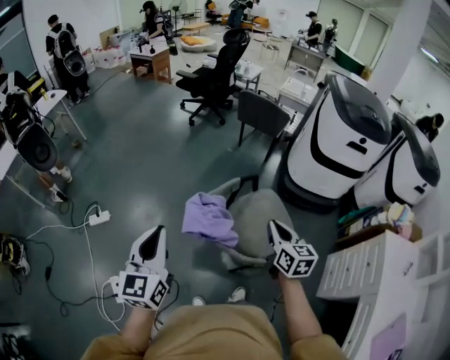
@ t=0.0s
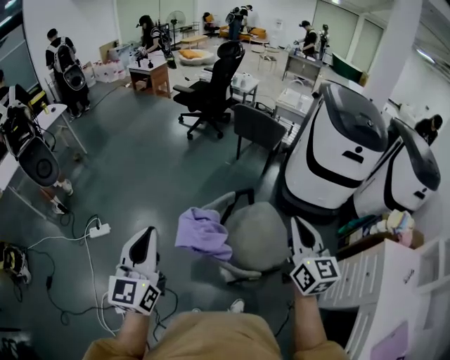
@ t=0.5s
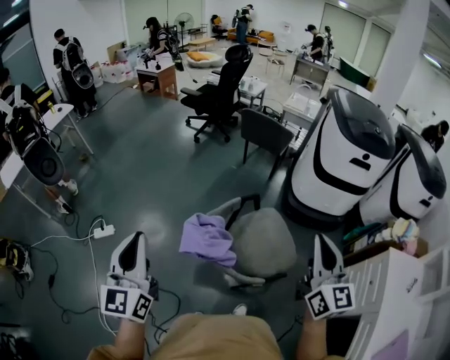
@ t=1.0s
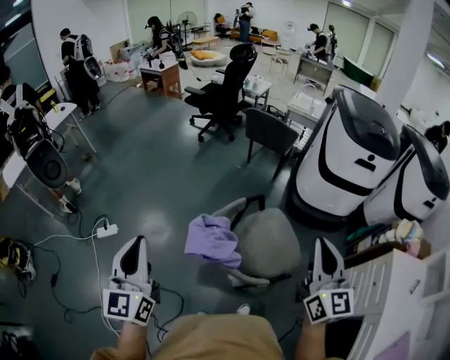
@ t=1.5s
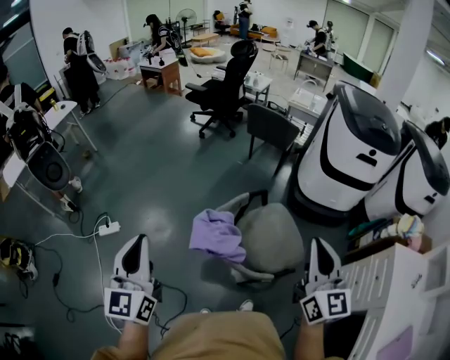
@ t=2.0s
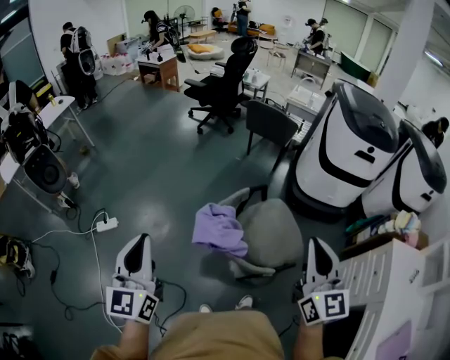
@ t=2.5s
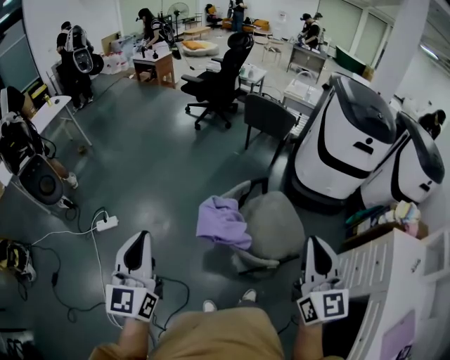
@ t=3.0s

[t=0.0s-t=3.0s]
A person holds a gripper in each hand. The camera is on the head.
t=0.0s to t=1.5s: The right gripper shifts about 20 cm upward, and turns by approximately 30 degrees. The left gripper is displaced upward by some 10 cm.
t=1.5s to t=3.0s: The left gripper heads to the left, covering about 5 cm; the right gripper shifts roughly 15 cm to the left and backward.

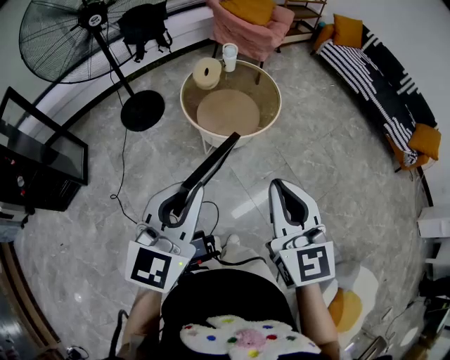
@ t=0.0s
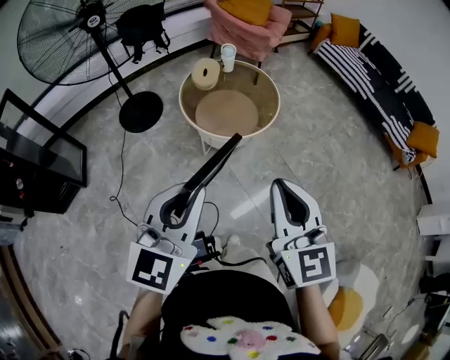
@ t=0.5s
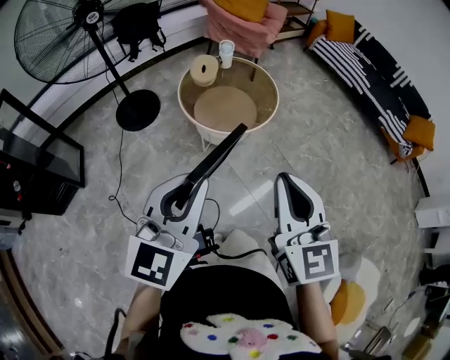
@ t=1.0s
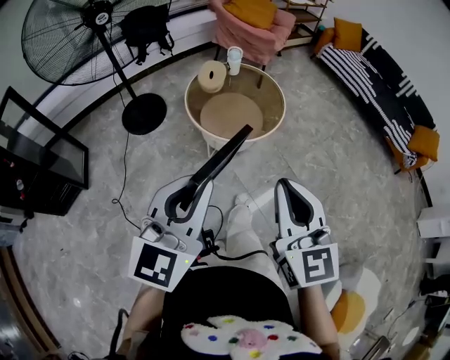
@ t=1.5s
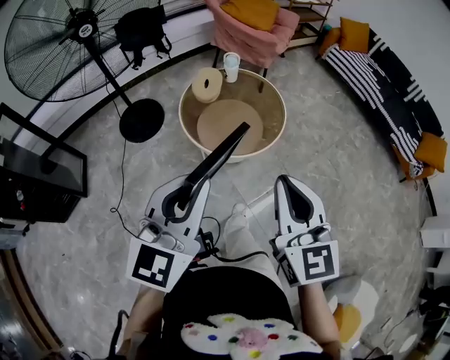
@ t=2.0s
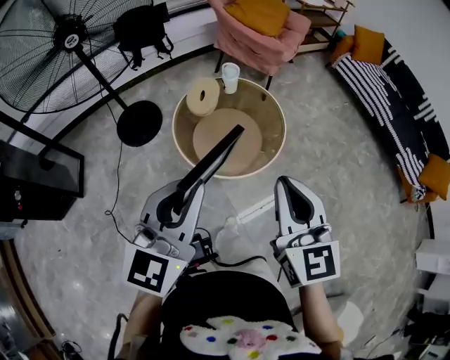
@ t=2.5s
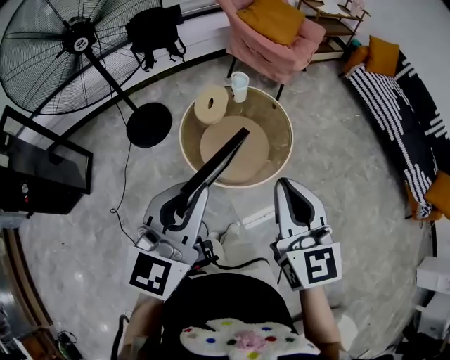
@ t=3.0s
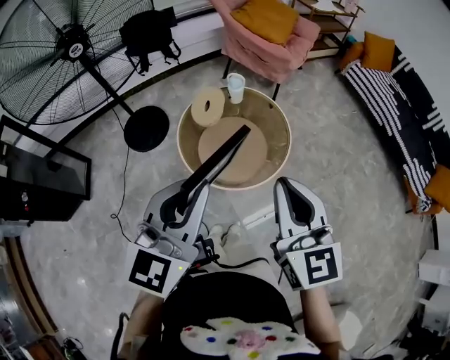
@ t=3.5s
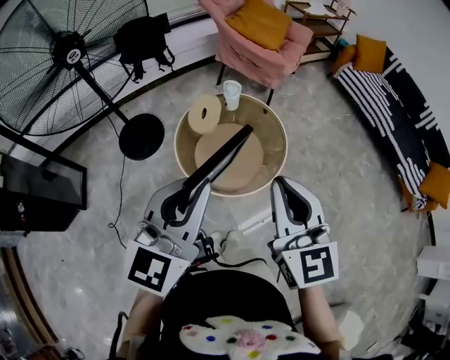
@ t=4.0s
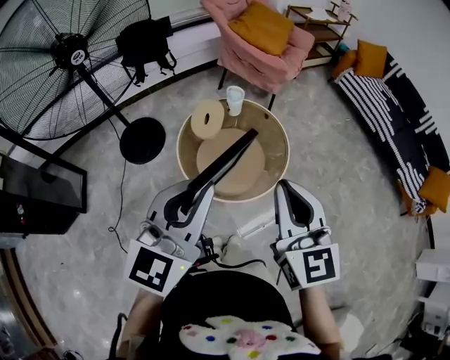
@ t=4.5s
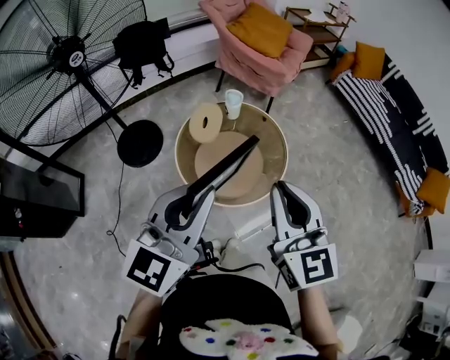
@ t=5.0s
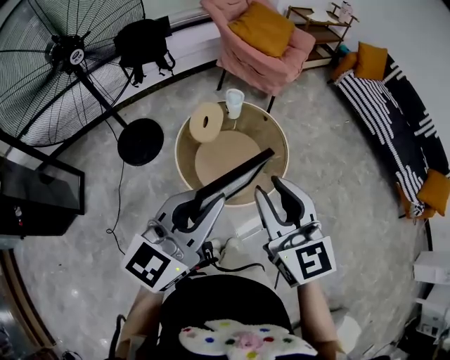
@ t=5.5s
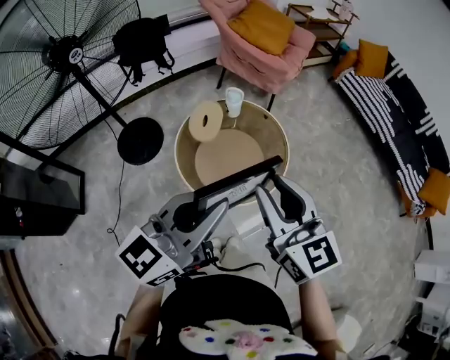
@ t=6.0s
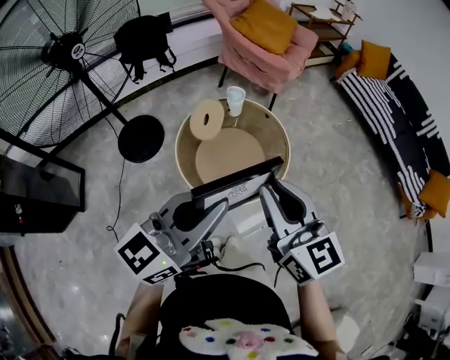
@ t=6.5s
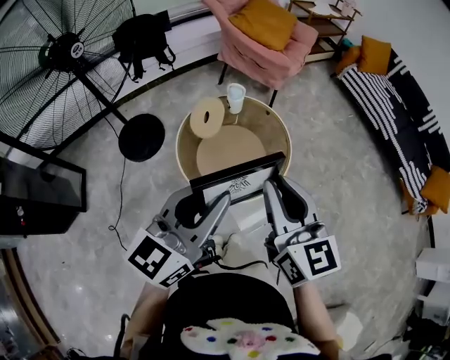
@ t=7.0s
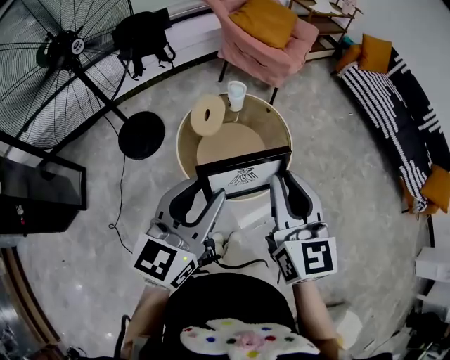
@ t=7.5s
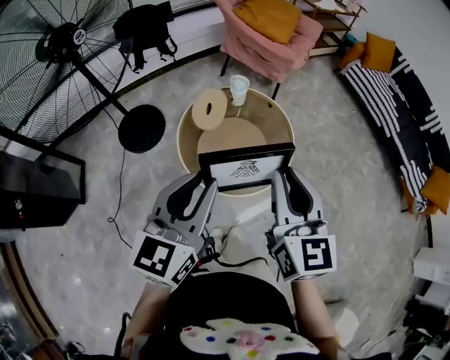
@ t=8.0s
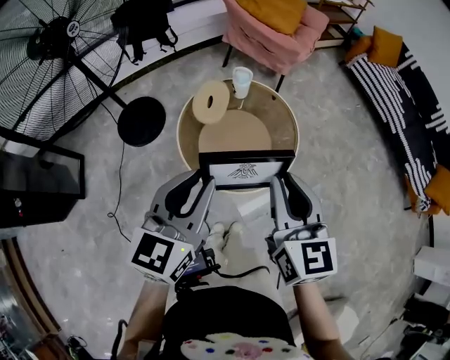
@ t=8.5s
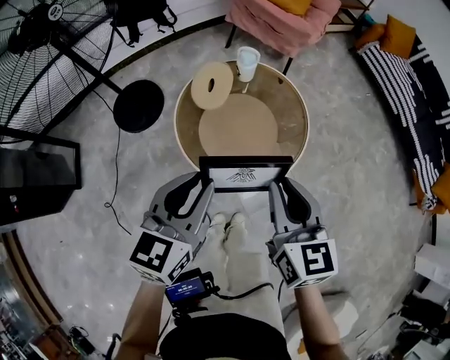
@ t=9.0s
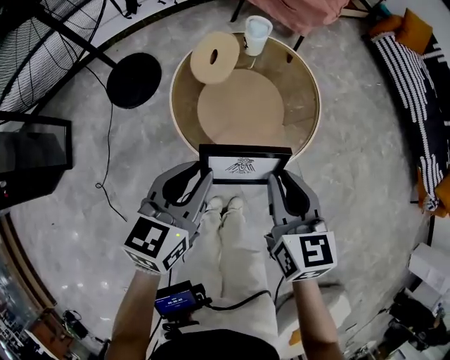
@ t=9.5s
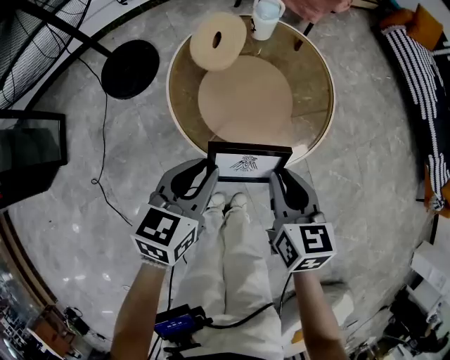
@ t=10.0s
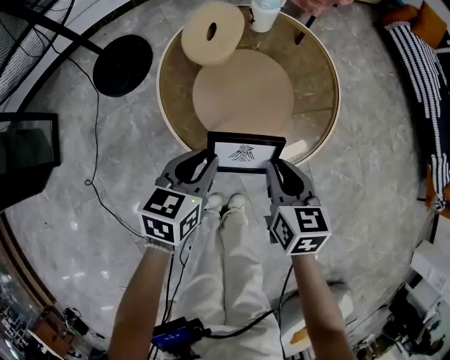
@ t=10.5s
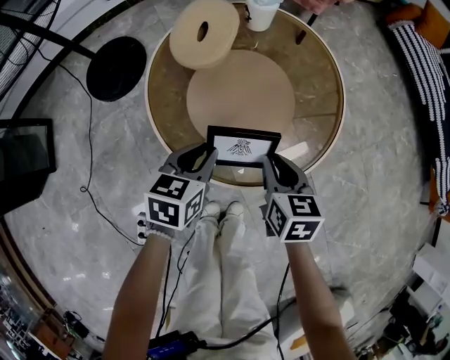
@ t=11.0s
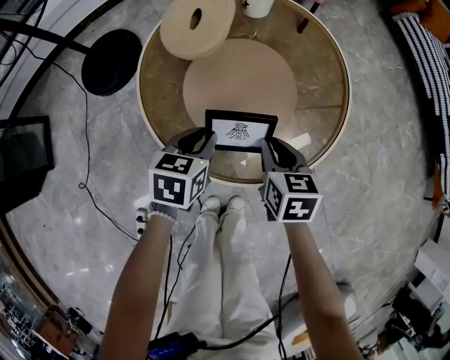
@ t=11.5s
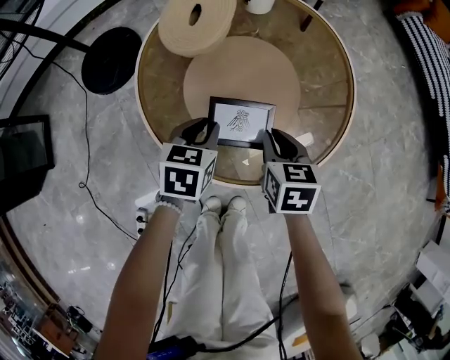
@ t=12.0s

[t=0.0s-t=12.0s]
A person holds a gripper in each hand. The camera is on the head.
t=0.0s to t=2.0s: The two grippers go approximately 10 cm forward.
t=2.0s to t=4.0s: The grippers both shift forward by some 20 cm.
t=4.0s to t=6.0s: The right gripper moves roughly 5 cm, and opens its fingers, while the left gripper rotates about 20 degrees.
t=6.0s to t=8.0s: The left gripper changes place by about 5 cm, and changes its angle by about 30 degrees.
t=8.0s to t=10.0s: The grippers both shift downward by about 30 cm. The right gripper turns by some 30 degrees, while the left gripper rotates roughly 30 degrees.
t=10.0s to t=12.0s: Both grippers travel together downward and forward, about 25 cm.

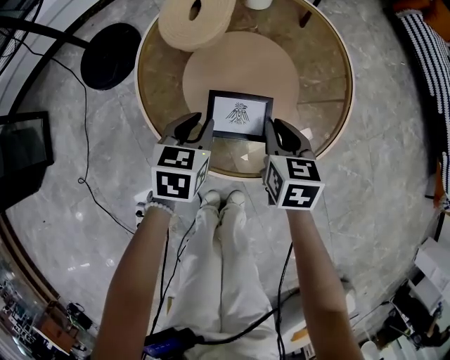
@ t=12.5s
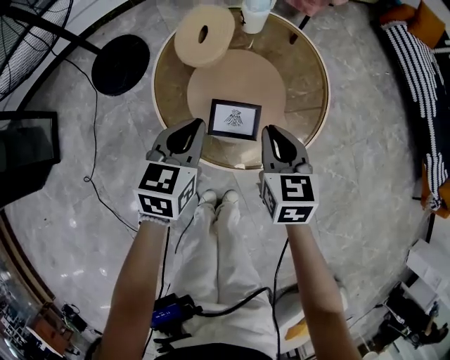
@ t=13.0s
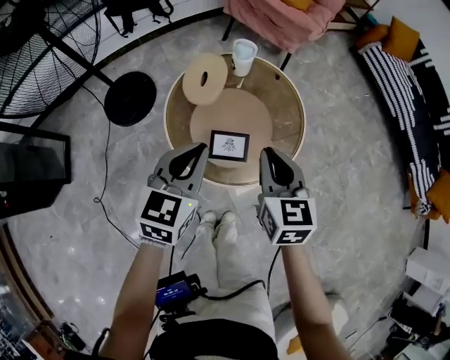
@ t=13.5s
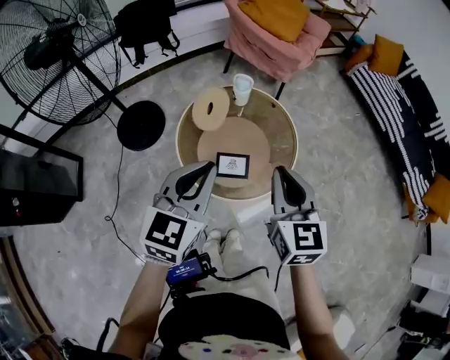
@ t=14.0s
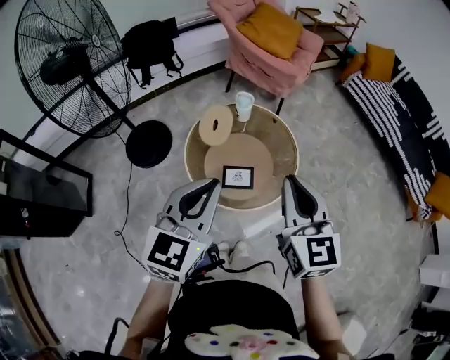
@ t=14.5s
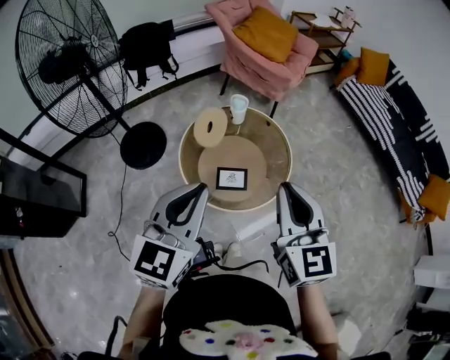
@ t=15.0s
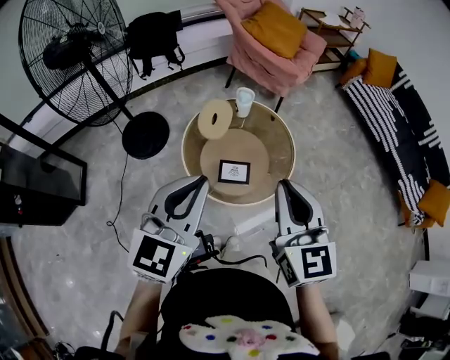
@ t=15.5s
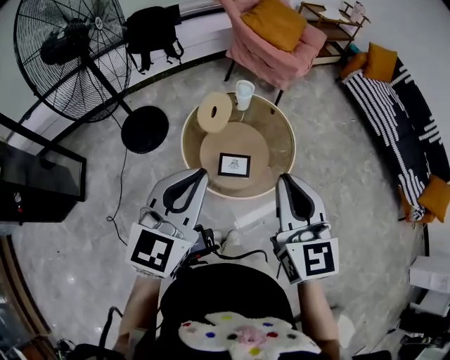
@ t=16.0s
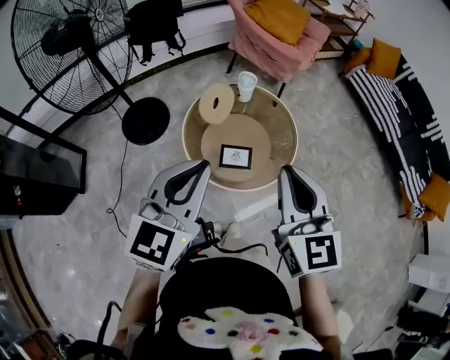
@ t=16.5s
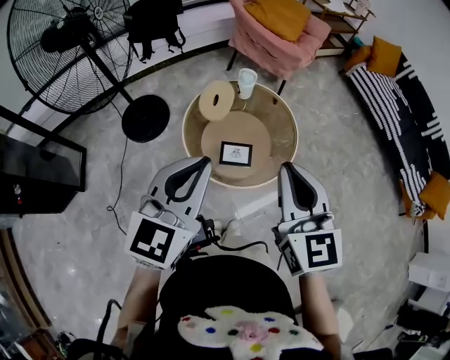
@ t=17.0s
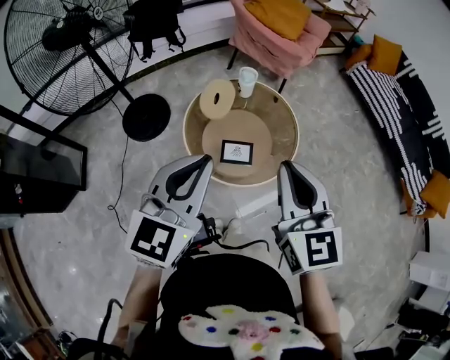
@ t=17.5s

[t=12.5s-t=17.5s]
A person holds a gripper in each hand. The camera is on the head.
t=12.5s to t=15.0s: Both grippers move upward, about 50 cm. The right gripper tips its fingers upward by some 40 degrees; the left gripper angles its fingers upward, by roughly 40 degrees.
t=15.0s to t=17.5s: The grippers stay close to where they were, moving slightly.

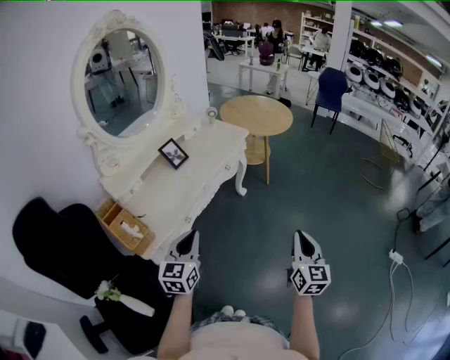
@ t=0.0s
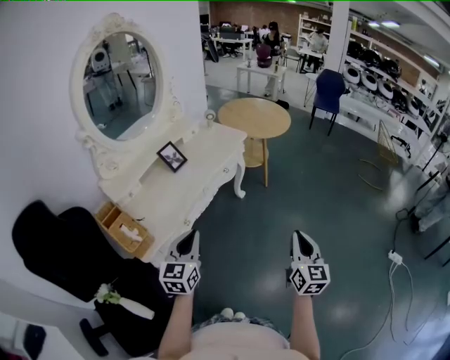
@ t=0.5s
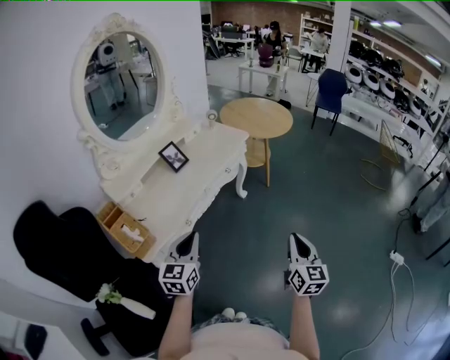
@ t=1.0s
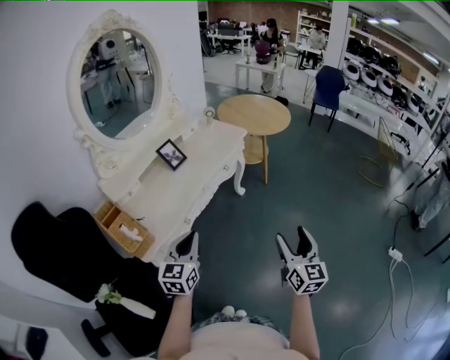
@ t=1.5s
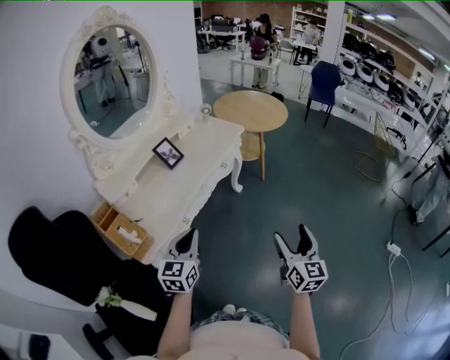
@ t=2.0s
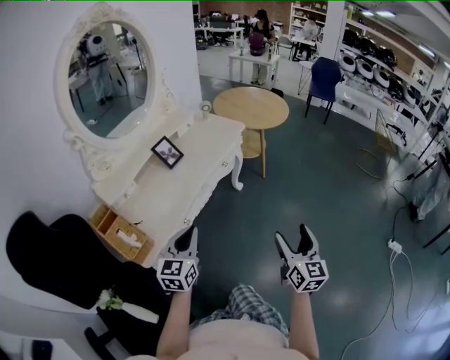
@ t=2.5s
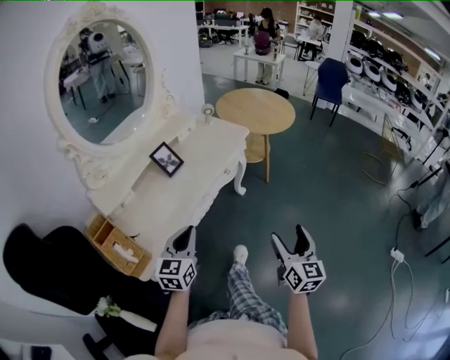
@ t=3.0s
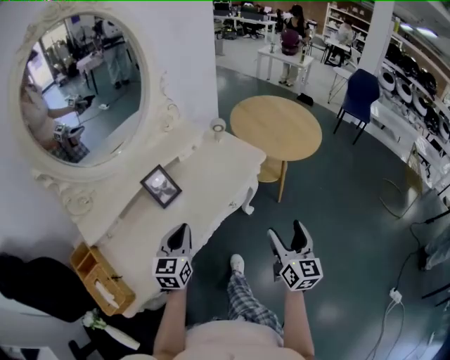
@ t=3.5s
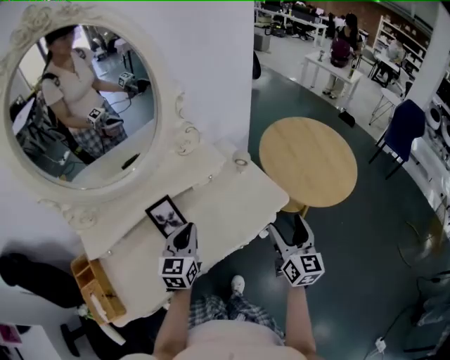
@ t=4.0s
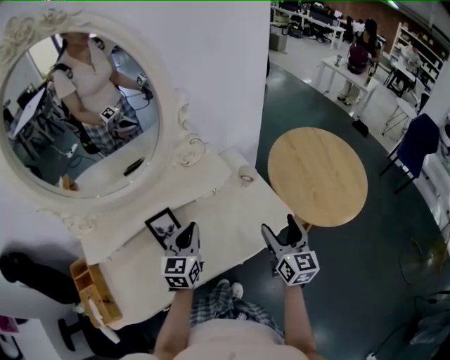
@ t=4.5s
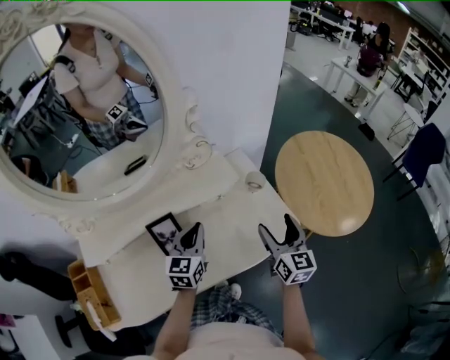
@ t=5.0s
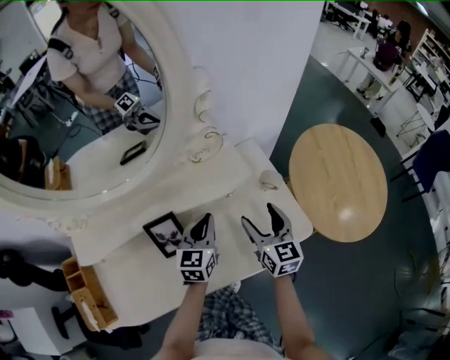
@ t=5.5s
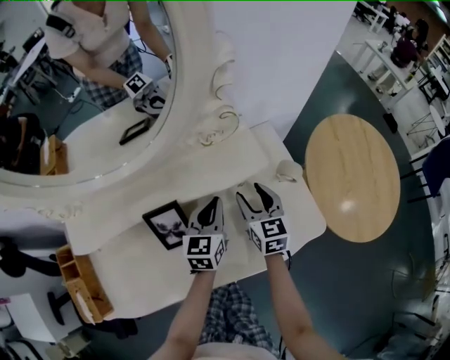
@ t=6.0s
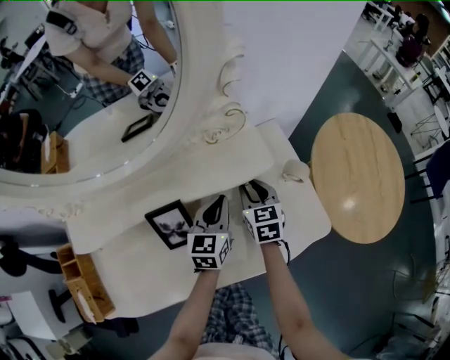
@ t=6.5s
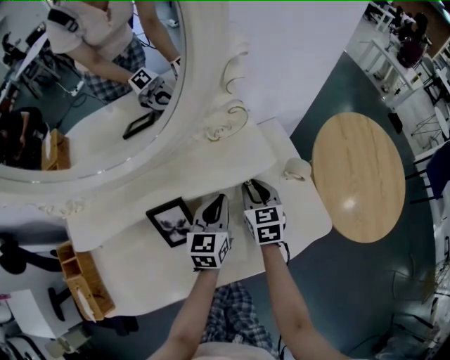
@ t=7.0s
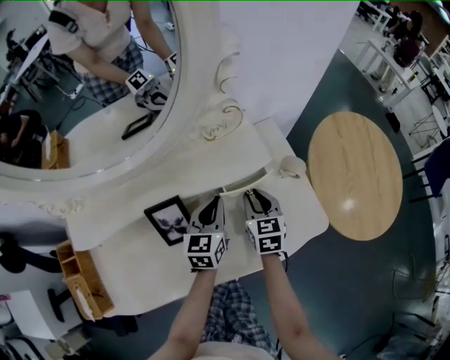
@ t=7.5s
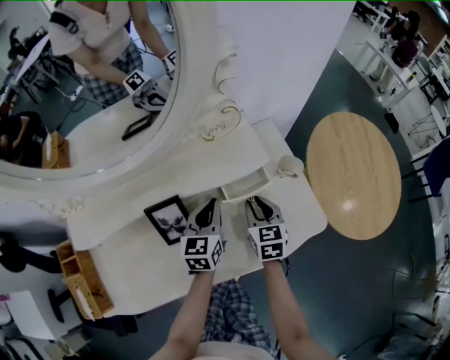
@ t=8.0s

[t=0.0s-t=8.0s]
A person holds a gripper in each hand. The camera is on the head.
t=0.0s to t=2.0s: The right gripper opens.
t=2.0s to t=4.0s: Both grippers are carried some 60 cm. The left gripper rotates roughly 20 degrees; the right gripper changes its angle by approximately 20 degrees.
t=4.0s to t=6.0s: The right gripper is displaced forward, to the left and downward by some 35 cm, rotates some 30 degrees, and closes its fingers; the left gripper is displaced forward and downward by about 25 cm.
t=6.0s to t=8.0s: The right gripper shifts by some 5 cm, and closes up.
